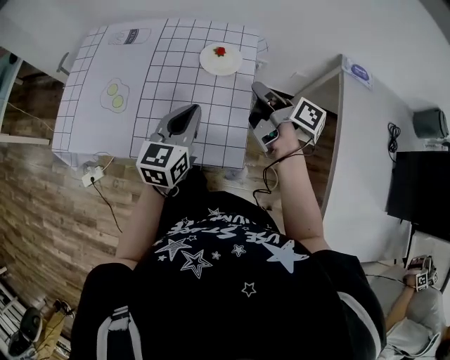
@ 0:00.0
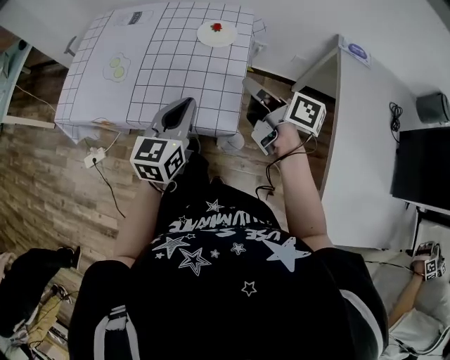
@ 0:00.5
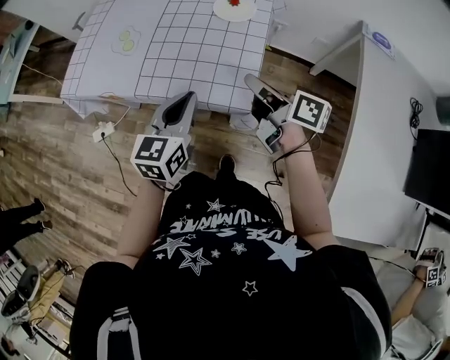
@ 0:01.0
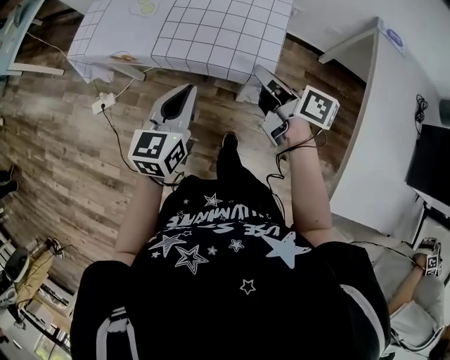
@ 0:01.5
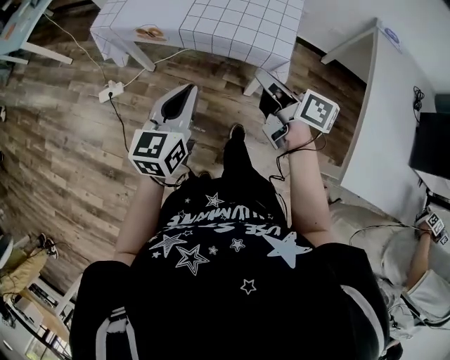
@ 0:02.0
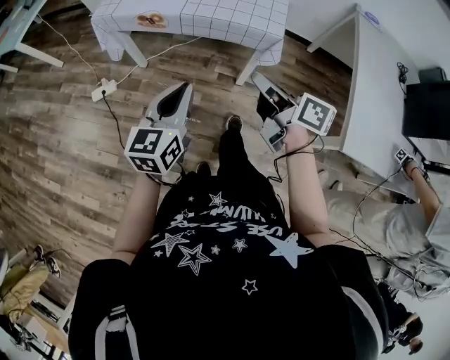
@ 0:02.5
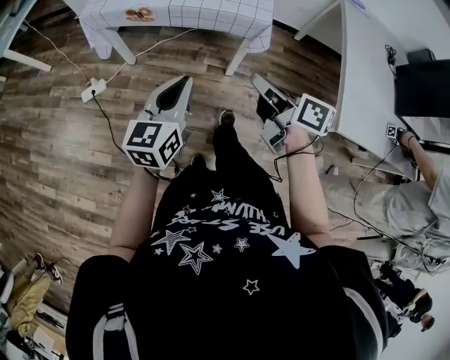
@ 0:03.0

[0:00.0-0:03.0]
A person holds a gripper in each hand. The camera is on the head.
0:00.0 to 0:01.5: The left gripper shifts by roughly 20 cm.
0:01.5 to 0:03.0: The left gripper changes place by approximately 20 cm.

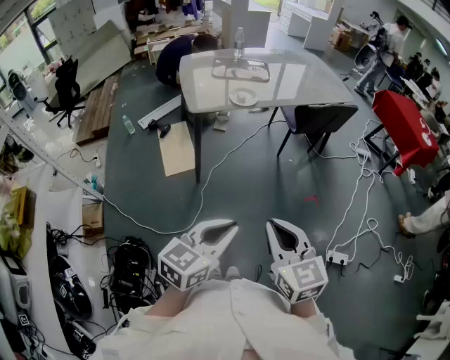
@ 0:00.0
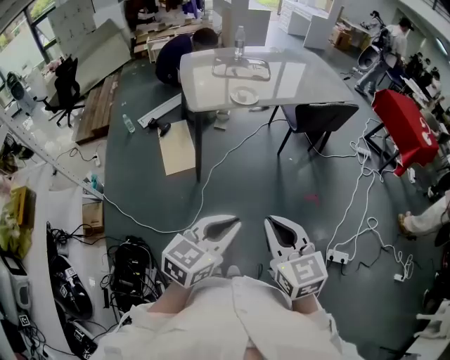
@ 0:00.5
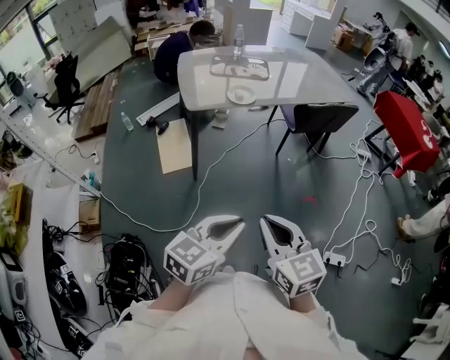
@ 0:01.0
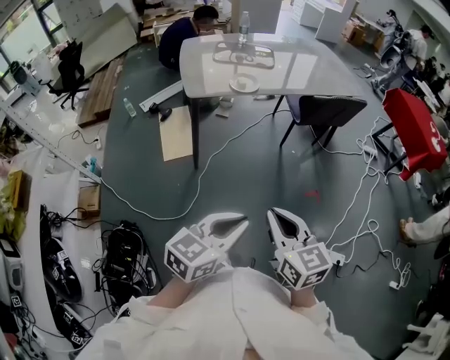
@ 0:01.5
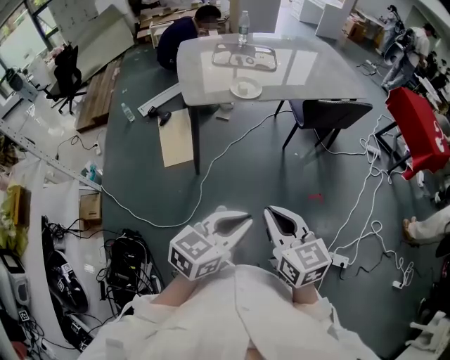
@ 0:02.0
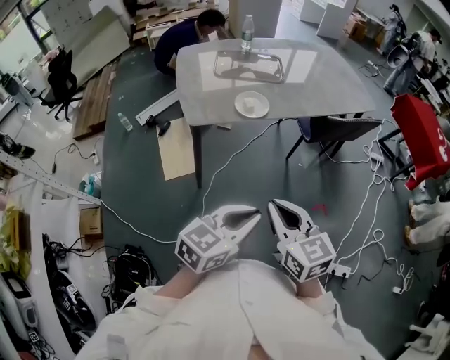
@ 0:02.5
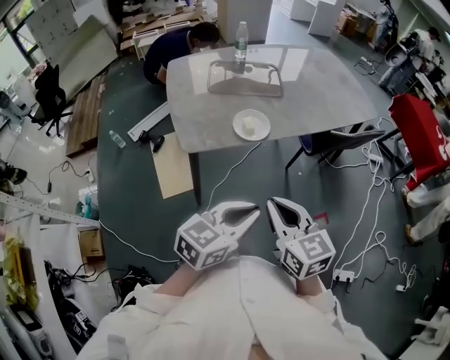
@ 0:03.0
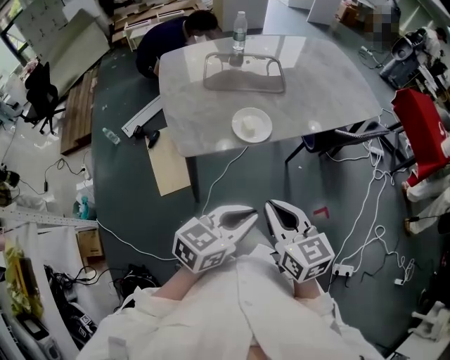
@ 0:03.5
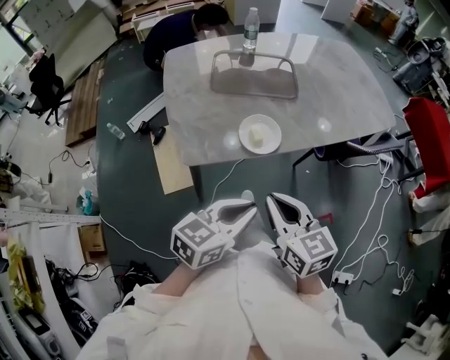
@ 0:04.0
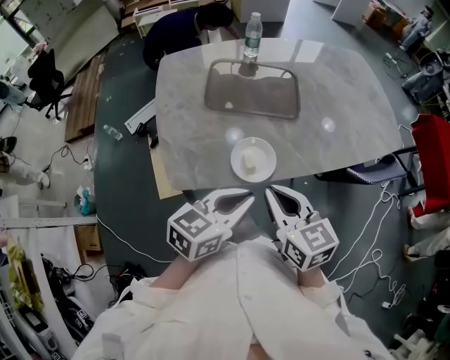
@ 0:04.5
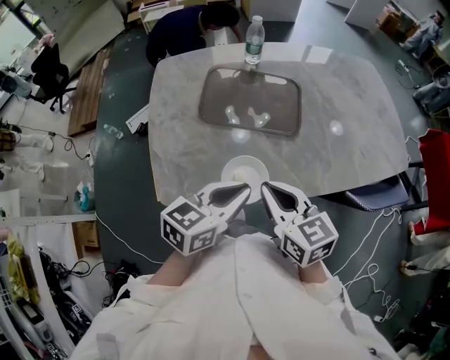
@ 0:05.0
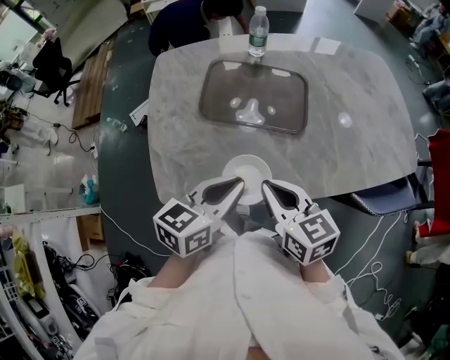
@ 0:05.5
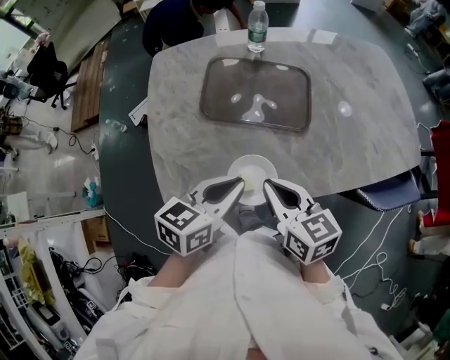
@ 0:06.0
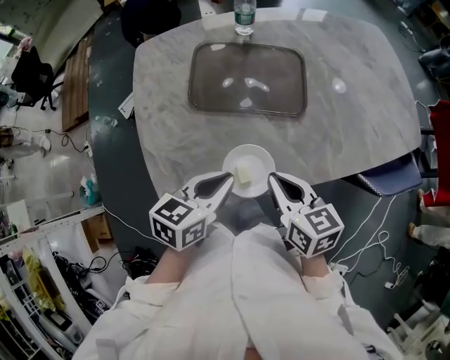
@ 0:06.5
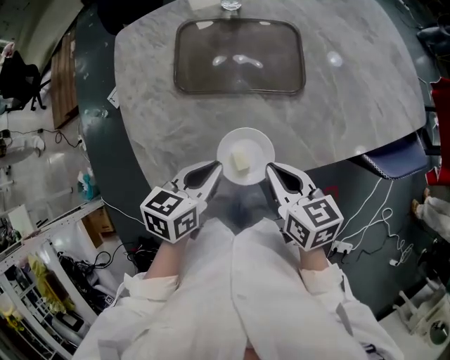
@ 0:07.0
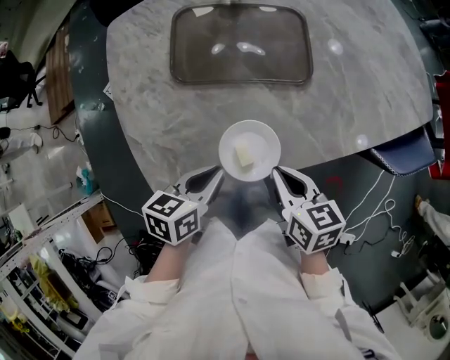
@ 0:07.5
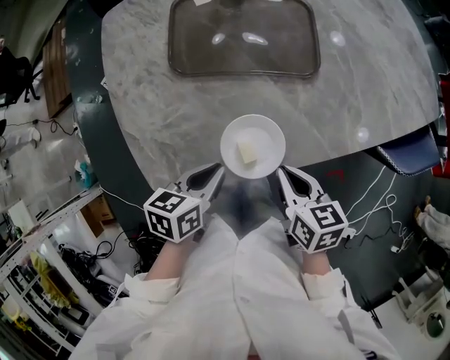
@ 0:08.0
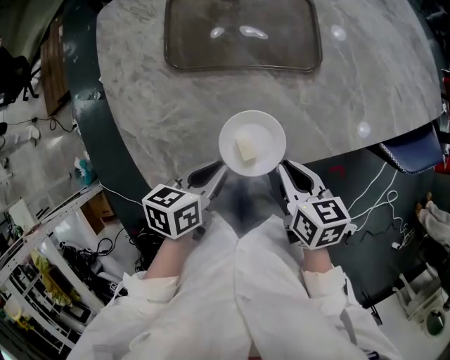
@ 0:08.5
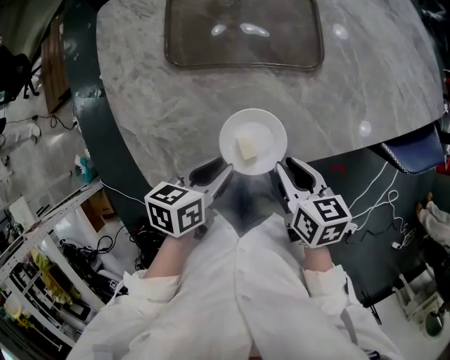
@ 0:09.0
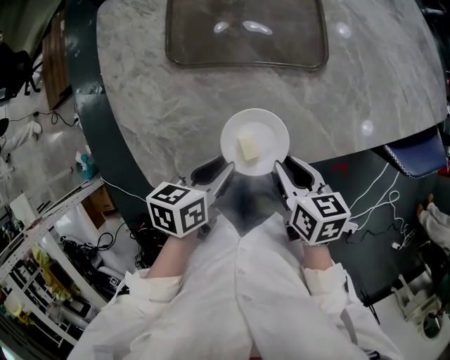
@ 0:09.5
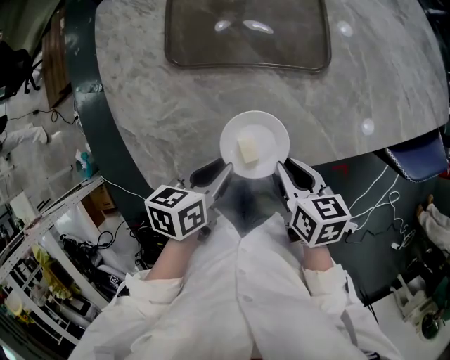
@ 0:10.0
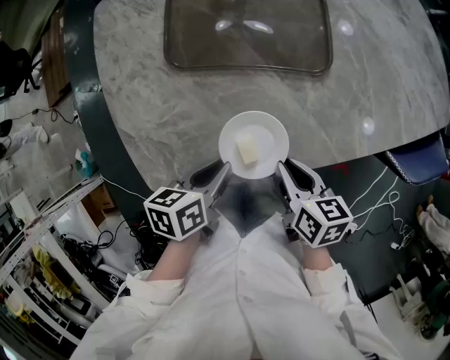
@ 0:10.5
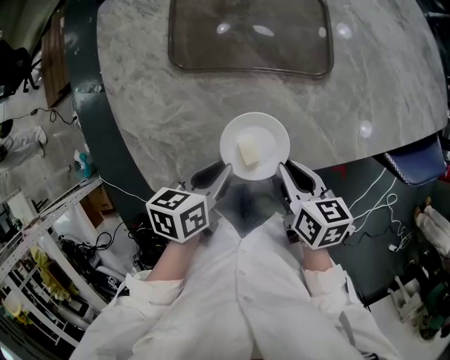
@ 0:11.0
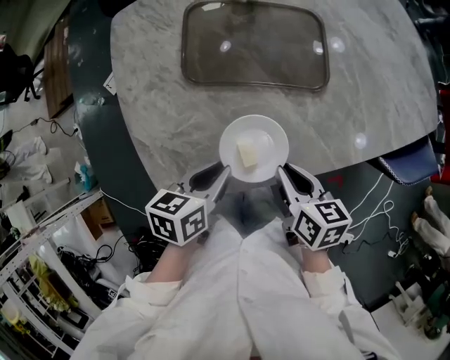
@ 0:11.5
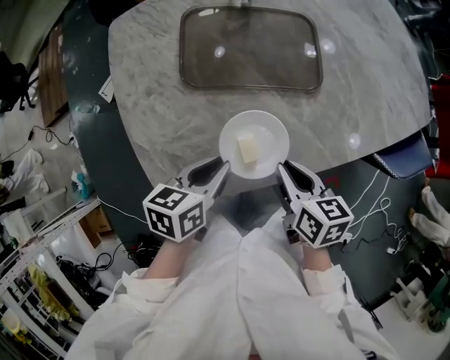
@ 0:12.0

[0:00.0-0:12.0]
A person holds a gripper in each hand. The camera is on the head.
0:00.0 to 0:02.0: The right gripper moves forward and downward, about 15 cm; the left gripper moves forward, approximately 10 cm.
0:02.0 to 0:04.0: The two grippers go some 40 cm forward and to the left.
0:04.0 to 0:06.0: Both grippers move forward, about 25 cm.
0:06.0 to 0:08.0: Both grippers travel together downward, about 15 cm. The left gripper changes its angle by some 20 degrees. Meanwhile the right gripper turns by some 30 degrees.
0:08.0 to 0:10.0: There are only small adjustments of the grippers.
0:10.0 to 0:12.0: The left gripper shifts by roughly 5 cm. The right gripper heads upward, covering roughly 5 cm.

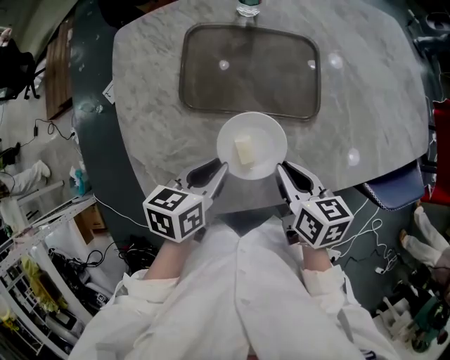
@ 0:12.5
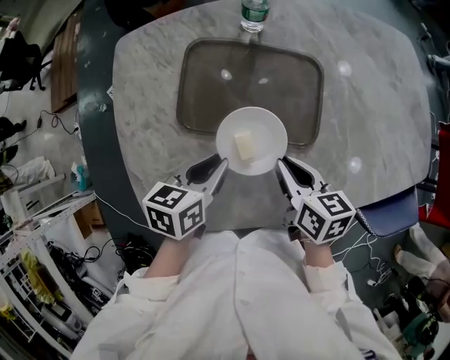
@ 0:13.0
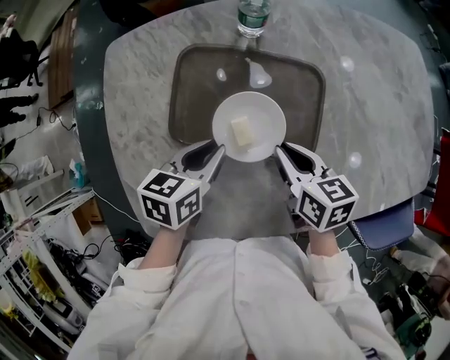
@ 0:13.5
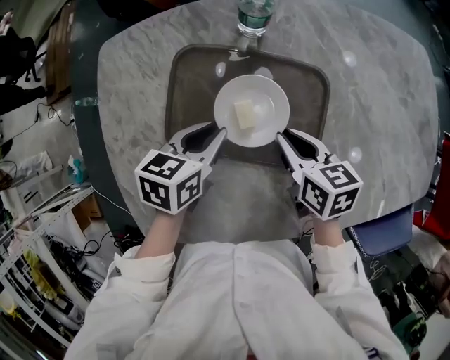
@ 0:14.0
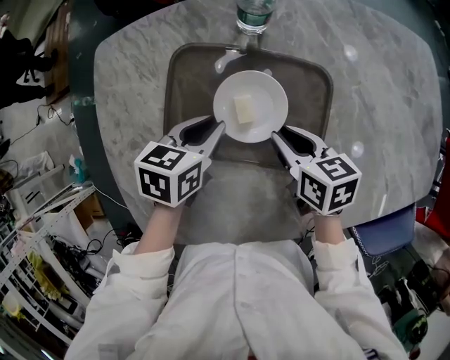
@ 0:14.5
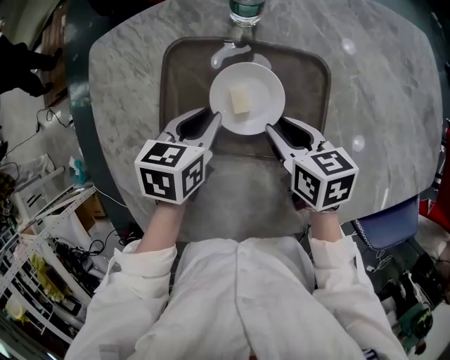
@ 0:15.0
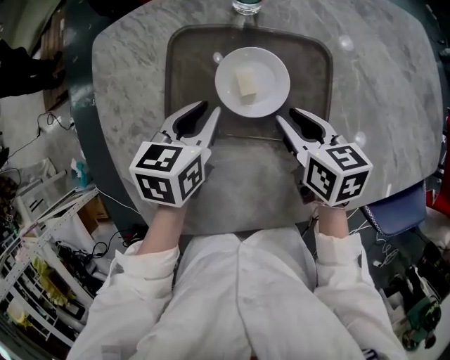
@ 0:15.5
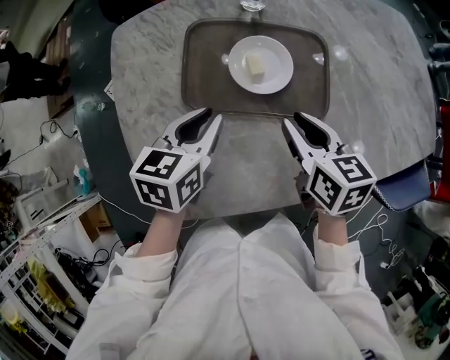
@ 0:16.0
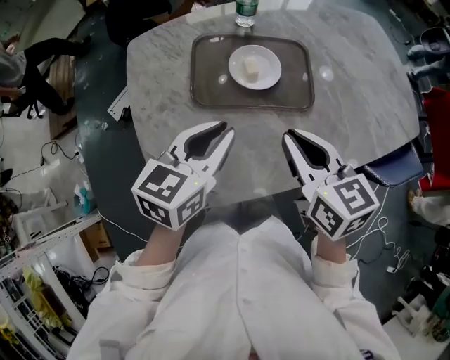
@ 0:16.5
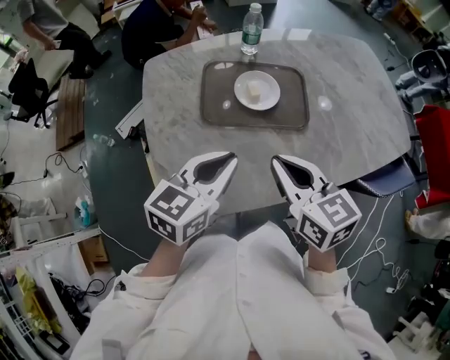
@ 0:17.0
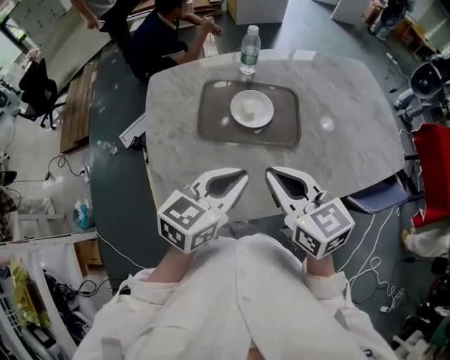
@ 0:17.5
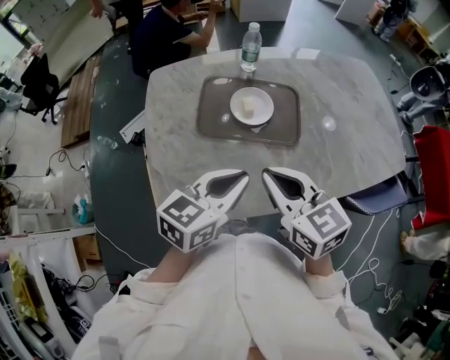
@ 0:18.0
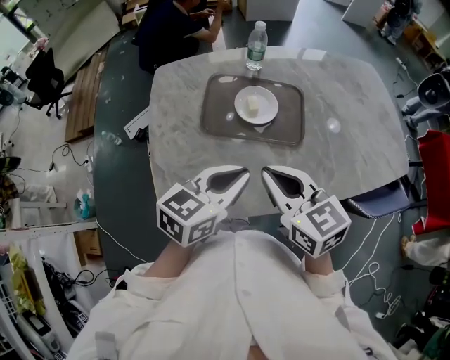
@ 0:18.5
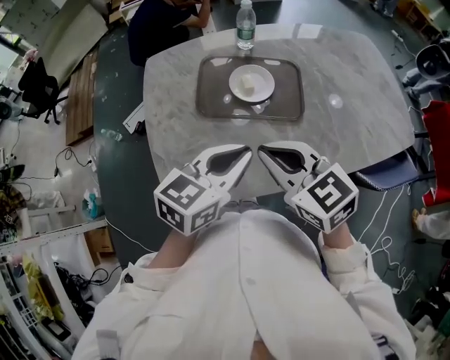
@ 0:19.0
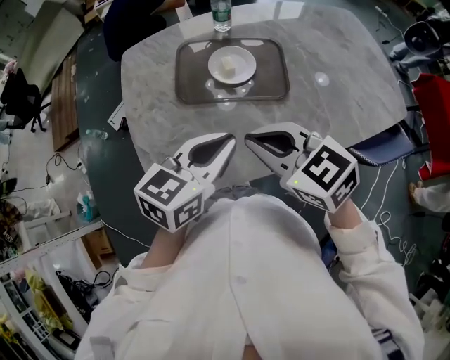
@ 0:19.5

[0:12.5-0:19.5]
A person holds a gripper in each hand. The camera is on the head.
0:12.5 to 0:14.5: The grippers both shift forward by roughly 20 cm.
0:14.5 to 0:16.0: The two grippers go approximately 10 cm backward and upward.
0:16.0 to 0:17.5: The right gripper heads upward and backward, covering roughly 20 cm, changes its angle by some 30 degrees, and closes up. The left gripper travels backward, upward and to the right by some 20 cm, and changes its angle by some 20 degrees.
0:17.5 to 0:19.5: The right gripper turns by some 20 degrees.

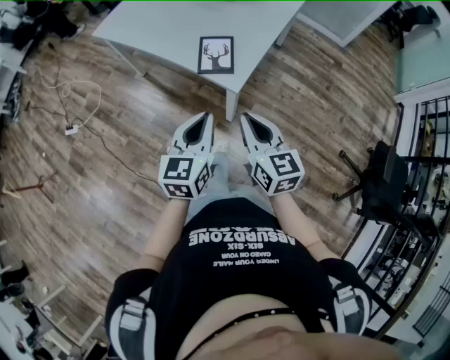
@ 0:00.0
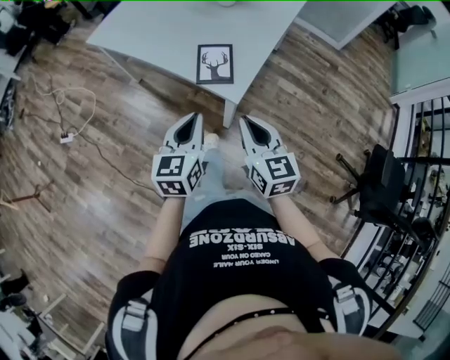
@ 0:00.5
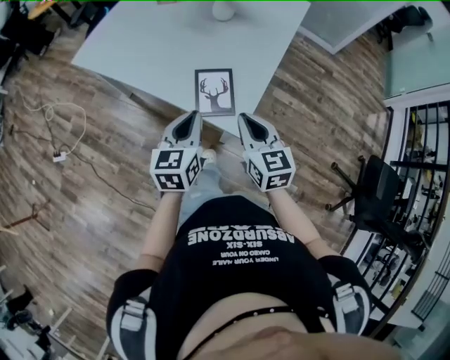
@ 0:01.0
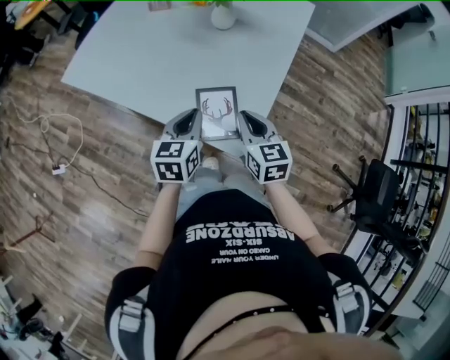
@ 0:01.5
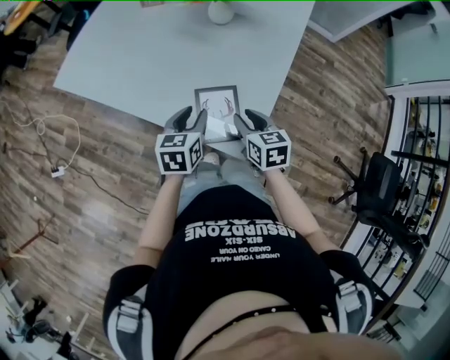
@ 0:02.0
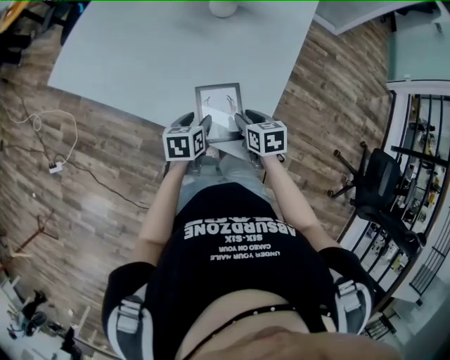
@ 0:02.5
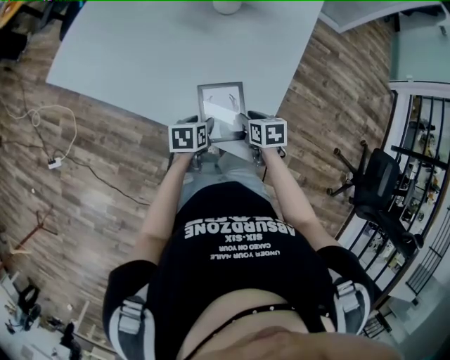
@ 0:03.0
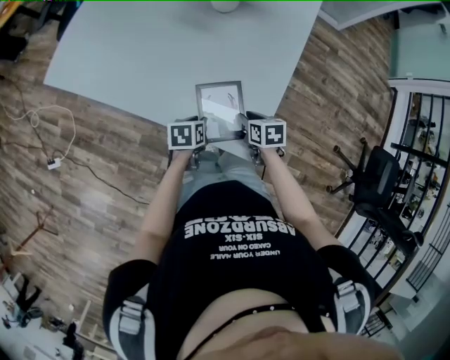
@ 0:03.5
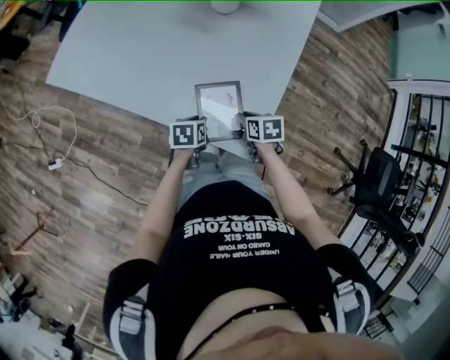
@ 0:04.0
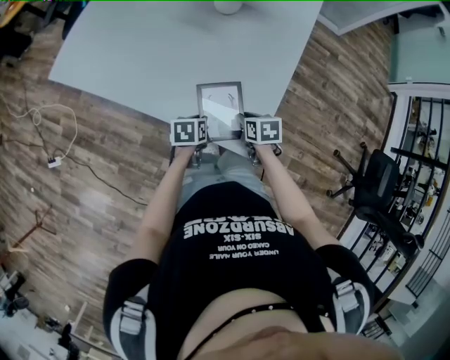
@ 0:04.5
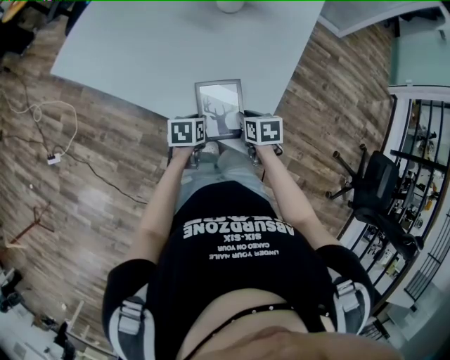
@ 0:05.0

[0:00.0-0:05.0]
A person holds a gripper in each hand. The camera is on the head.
0:00.0 to 0:02.5: Both grippers move forward and downward, some 40 cm. The left gripper points its fingers roughly 30 degrees further downward, and opens its fingers. The right gripper tilts its fingers approximately 40 degrees downward, and opens.
0:02.5 to 0:05.0: The left gripper changes place by approximately 5 cm, and closes its fingers.
